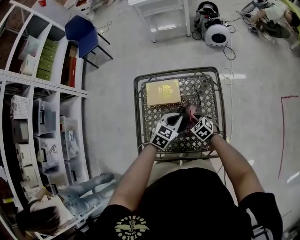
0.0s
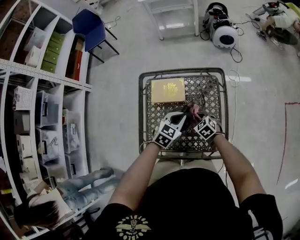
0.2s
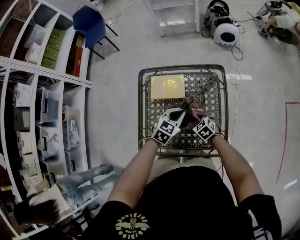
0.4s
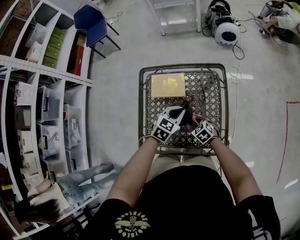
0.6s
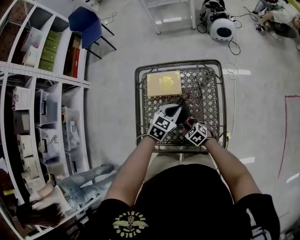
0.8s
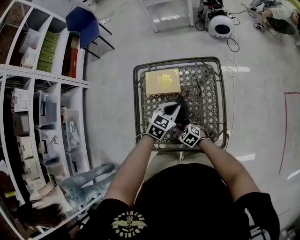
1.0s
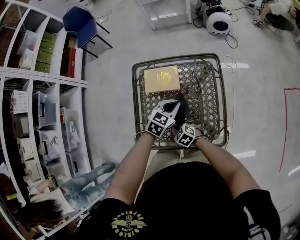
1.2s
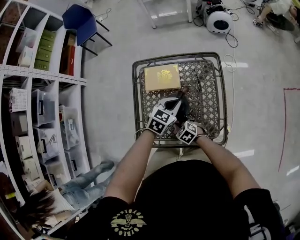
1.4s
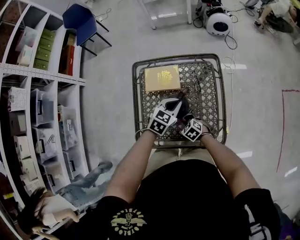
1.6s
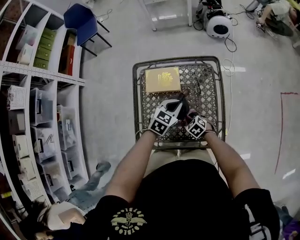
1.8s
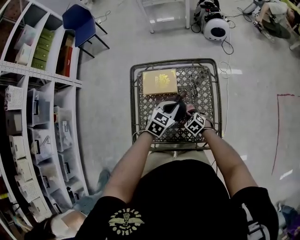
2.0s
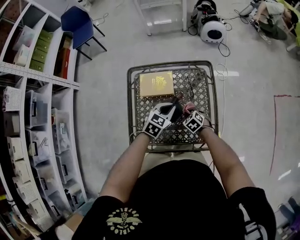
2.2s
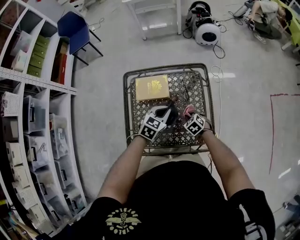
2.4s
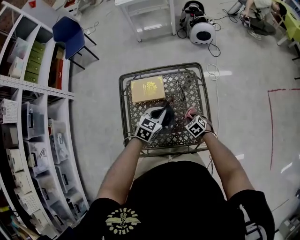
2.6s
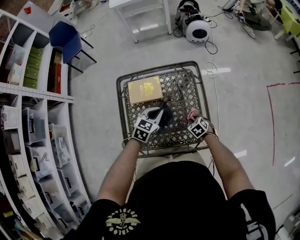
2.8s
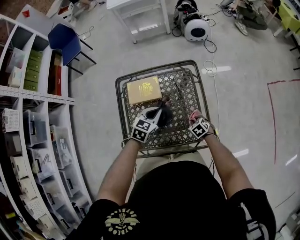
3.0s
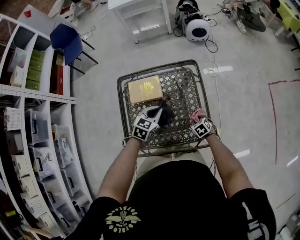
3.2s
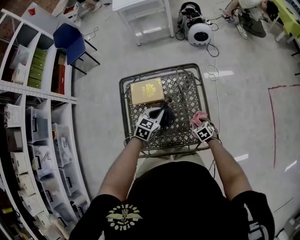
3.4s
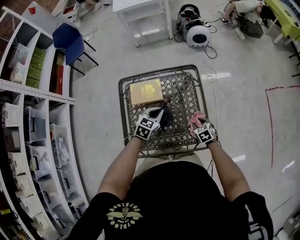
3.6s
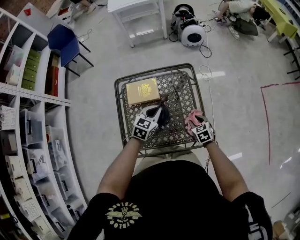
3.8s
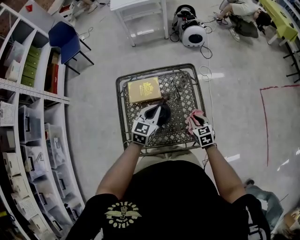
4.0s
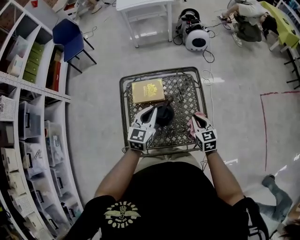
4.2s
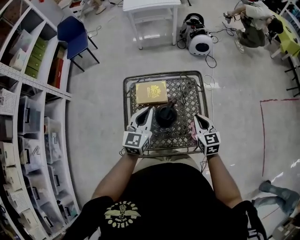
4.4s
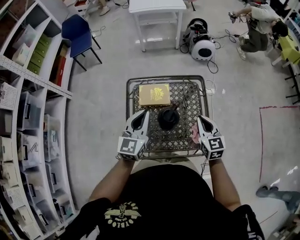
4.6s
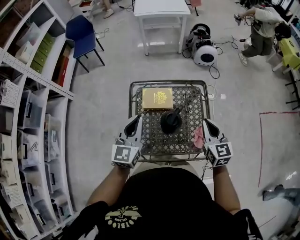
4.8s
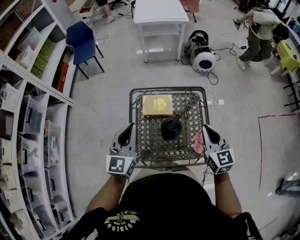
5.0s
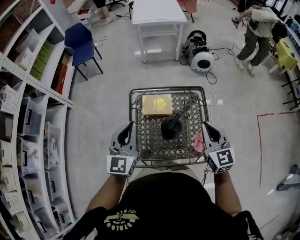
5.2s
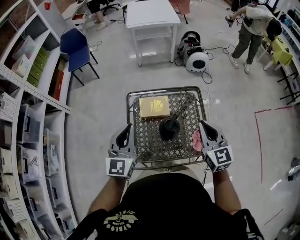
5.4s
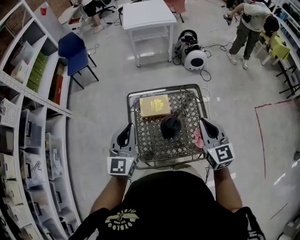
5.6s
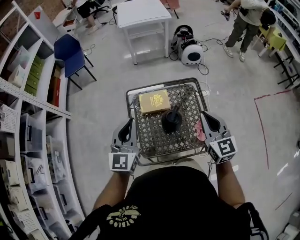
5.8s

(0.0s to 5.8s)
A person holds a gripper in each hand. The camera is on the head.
0.0s - 1.4s: The right gripper goes about 15 cm to the left and backward.
1.4s - 2.8s: The right gripper heads to the right, covering about 20 cm, and changes its angle by some 20 degrees.
2.8s - 4.4s: The right gripper heads upward, covering some 25 cm, tilts its fingers about 40 degrees upward, and opens and closes again. The left gripper goes about 15 cm upward and to the left, and rotates some 30 degrees.
4.4s - 5.8s: The left gripper heads upward and to the left, covering about 15 cm; the right gripper travels upward by about 20 cm.

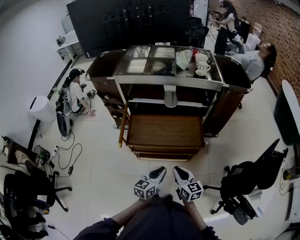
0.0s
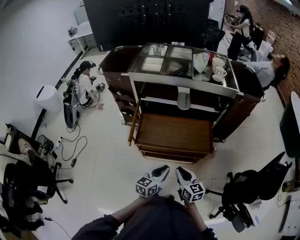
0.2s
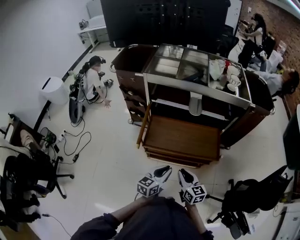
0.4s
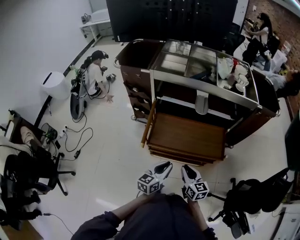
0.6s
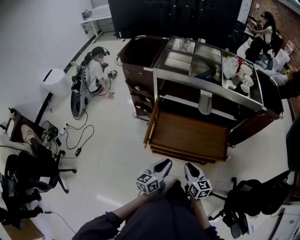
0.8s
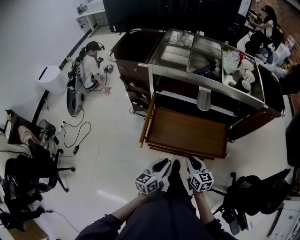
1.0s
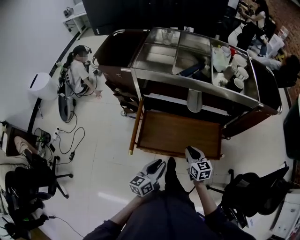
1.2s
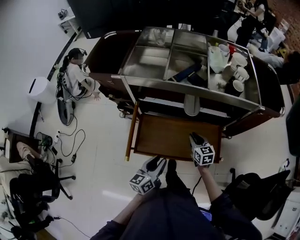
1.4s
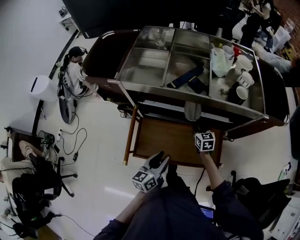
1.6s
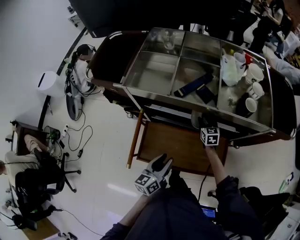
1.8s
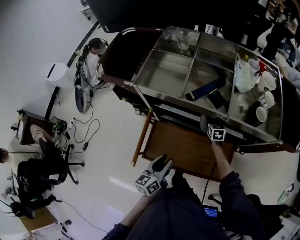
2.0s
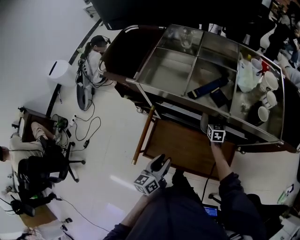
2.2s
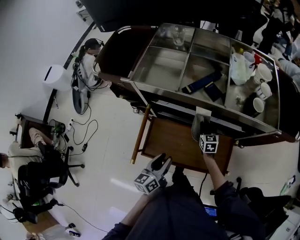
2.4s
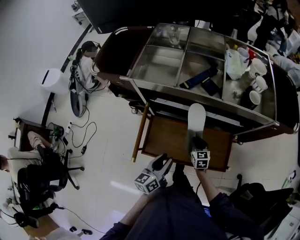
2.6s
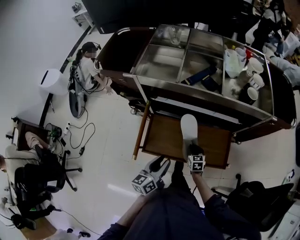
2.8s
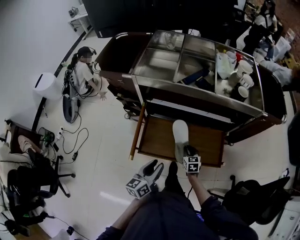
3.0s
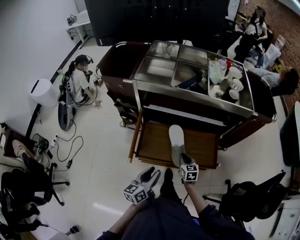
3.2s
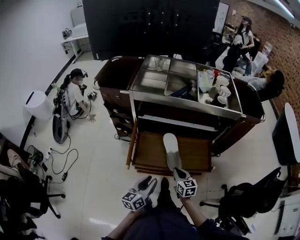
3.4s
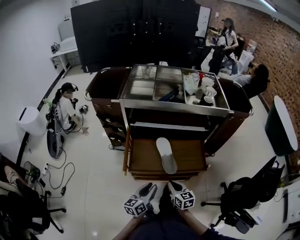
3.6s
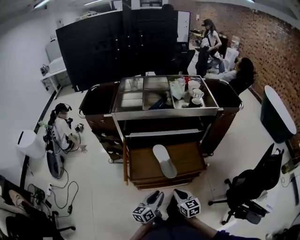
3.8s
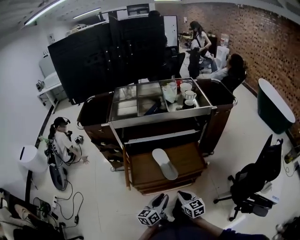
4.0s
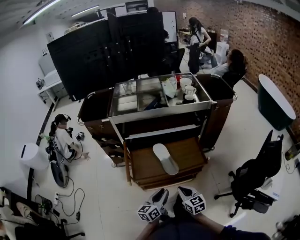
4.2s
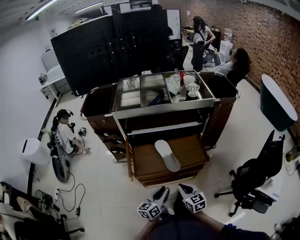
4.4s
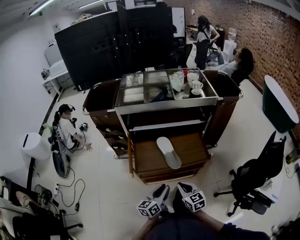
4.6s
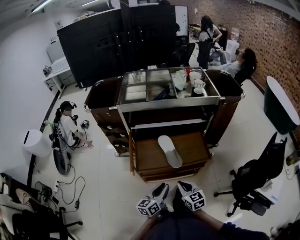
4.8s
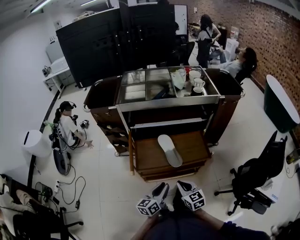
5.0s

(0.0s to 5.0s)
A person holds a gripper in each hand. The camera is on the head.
0.0s - 1.6s: The right gripper shifts about 50 cm forward, and changes its angle by approximately 20 degrees. Meanwhile the left gripper is displaced forward by some 30 cm, and opens up.
1.6s - 3.4s: The right gripper goes some 30 cm backward, and closes up. The left gripper shifts roughly 15 cm backward.
3.4s - 5.0s: The right gripper shifts about 15 cm backward and upward. Meanwhile the left gripper shifts some 5 cm backward.

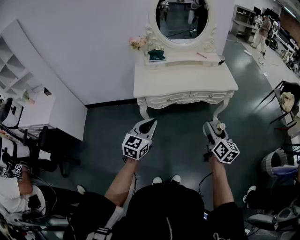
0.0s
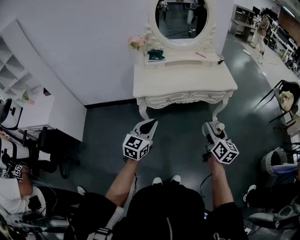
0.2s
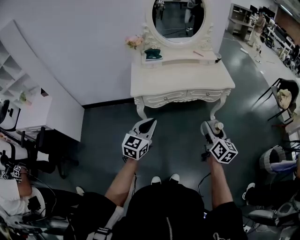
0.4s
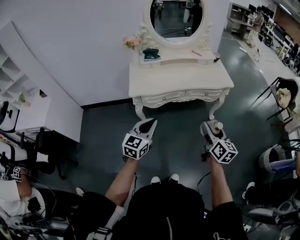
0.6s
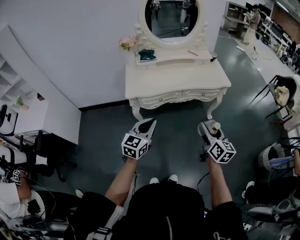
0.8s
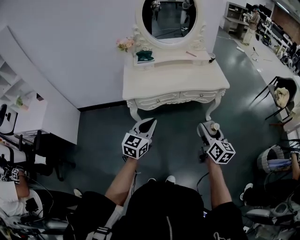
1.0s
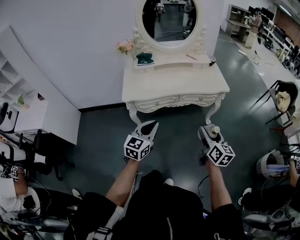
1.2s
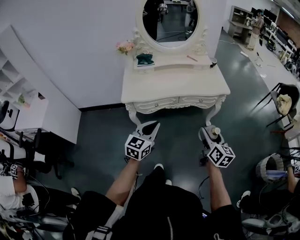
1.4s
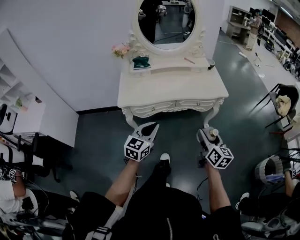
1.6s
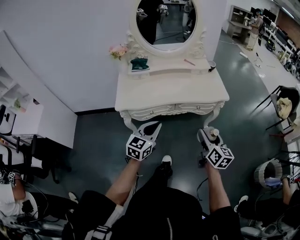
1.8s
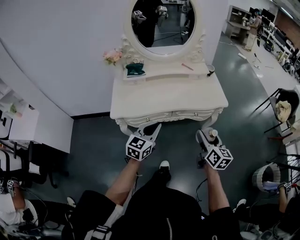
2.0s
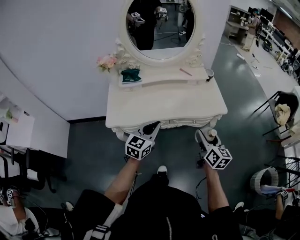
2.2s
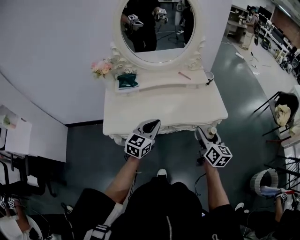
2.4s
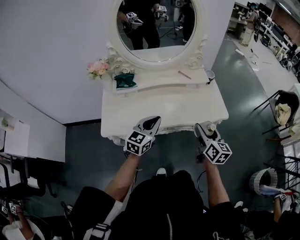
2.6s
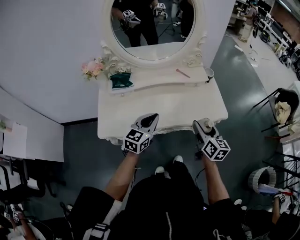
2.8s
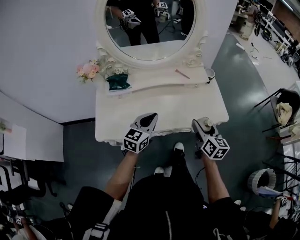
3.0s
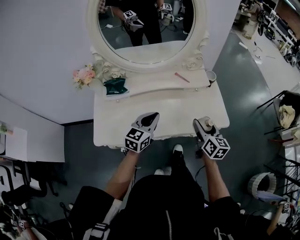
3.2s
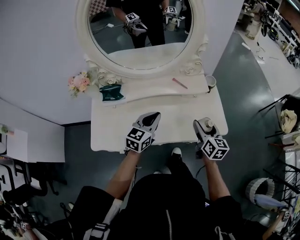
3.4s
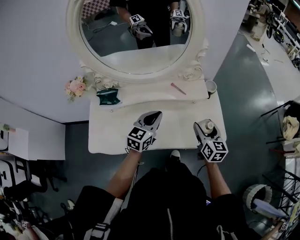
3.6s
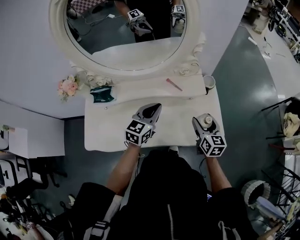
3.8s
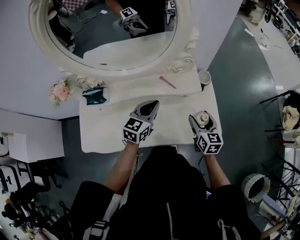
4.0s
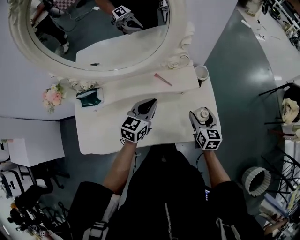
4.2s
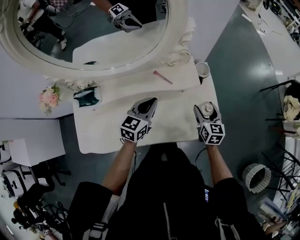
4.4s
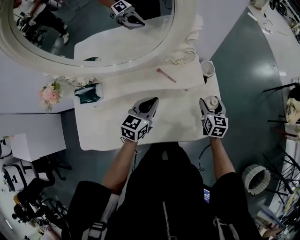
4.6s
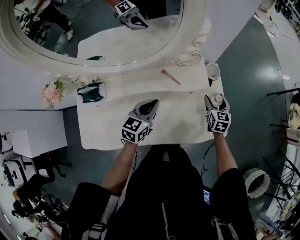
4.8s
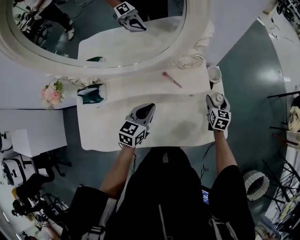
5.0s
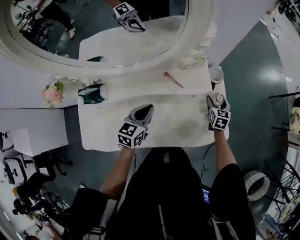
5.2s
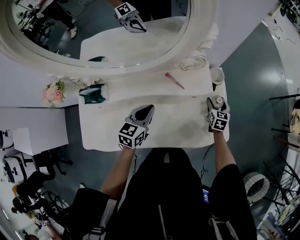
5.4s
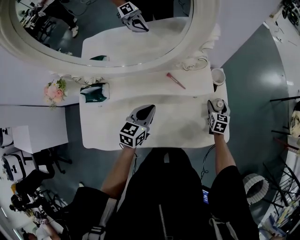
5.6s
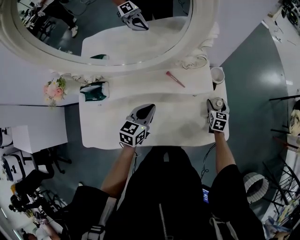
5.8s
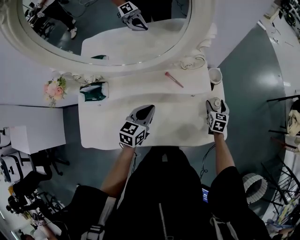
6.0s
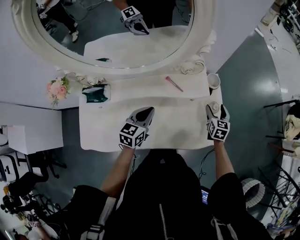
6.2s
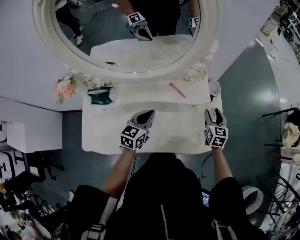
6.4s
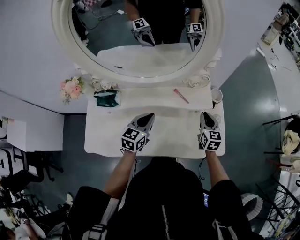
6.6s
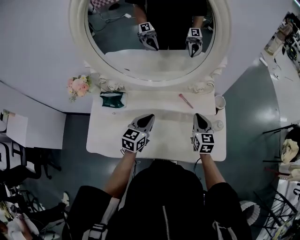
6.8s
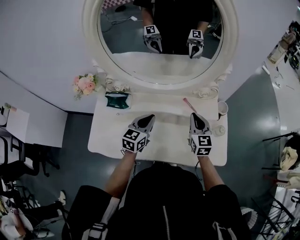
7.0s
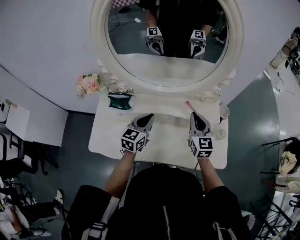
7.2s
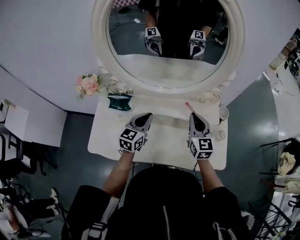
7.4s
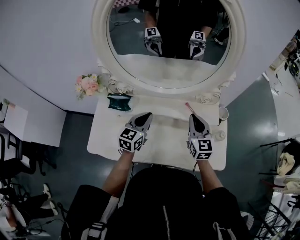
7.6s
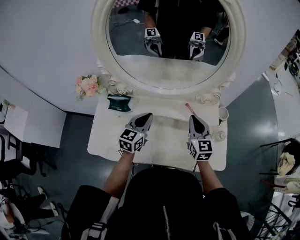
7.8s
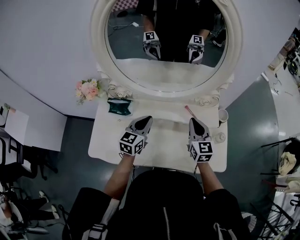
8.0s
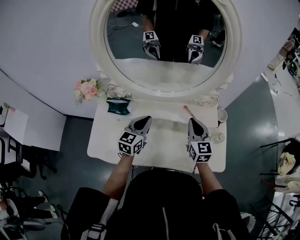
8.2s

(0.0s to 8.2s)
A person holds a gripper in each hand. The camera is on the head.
0.0s - 1.6s: The left gripper heads to the right and forward, covering roughly 15 cm. Meanwhile the right gripper moves forward and to the right, about 10 cm.
1.6s - 3.2s: The two grippers travel together, forward, some 40 cm.
3.2s - 5.0s: The left gripper moves forward and downward, approximately 20 cm. Meanwhile the right gripper travels forward and downward by some 35 cm, and turns by about 30 degrees.
5.0s - 6.6s: The right gripper travels upward, to the left and backward by about 15 cm, and closes up. Meanwhile the left gripper changes place by approximately 5 cm.
6.6s - 8.2s: The left gripper shifts roughly 10 cm to the left; the right gripper goes about 20 cm to the left and upward.

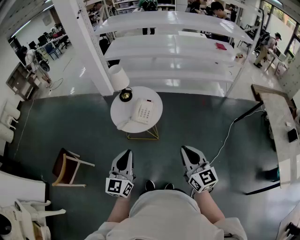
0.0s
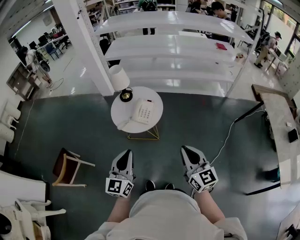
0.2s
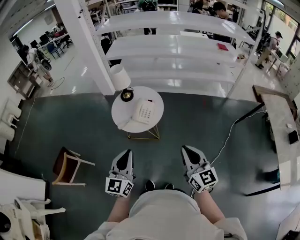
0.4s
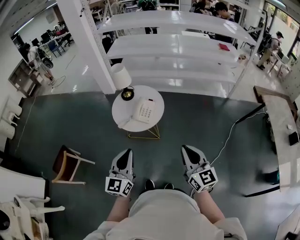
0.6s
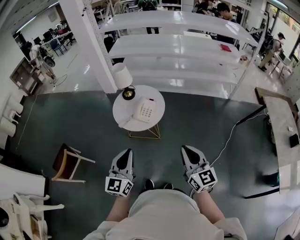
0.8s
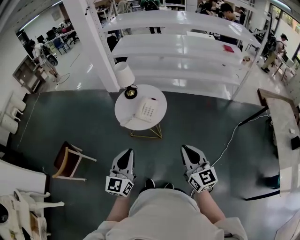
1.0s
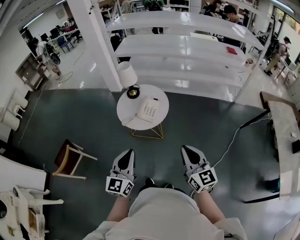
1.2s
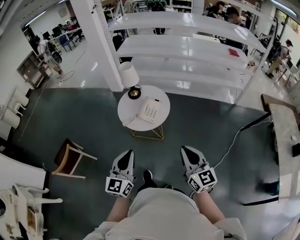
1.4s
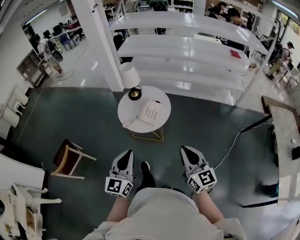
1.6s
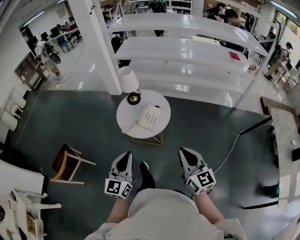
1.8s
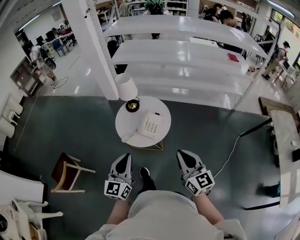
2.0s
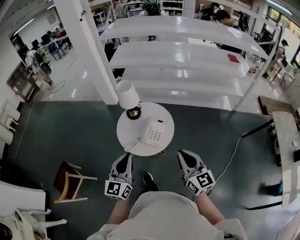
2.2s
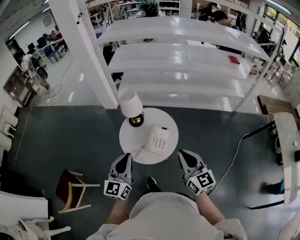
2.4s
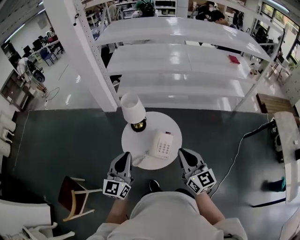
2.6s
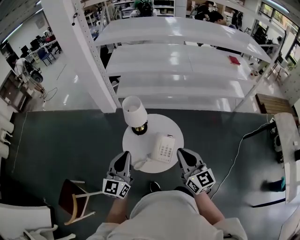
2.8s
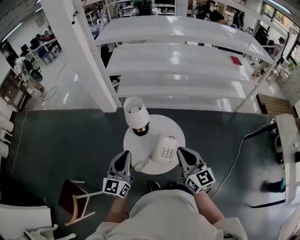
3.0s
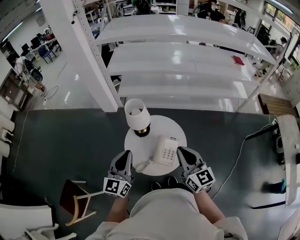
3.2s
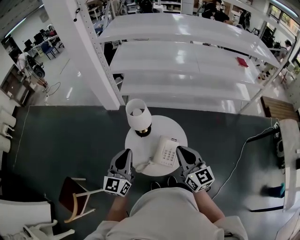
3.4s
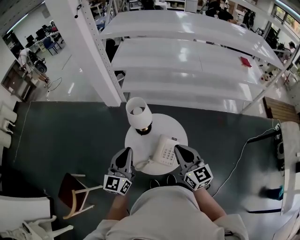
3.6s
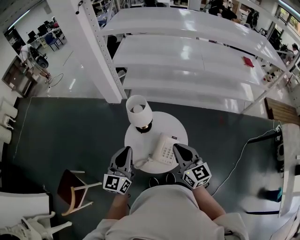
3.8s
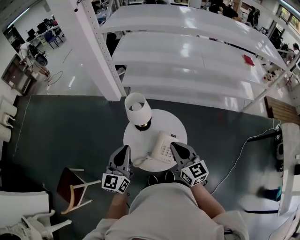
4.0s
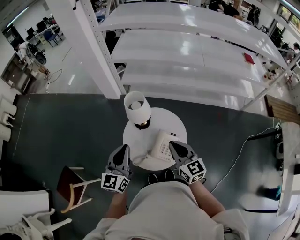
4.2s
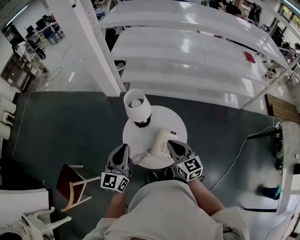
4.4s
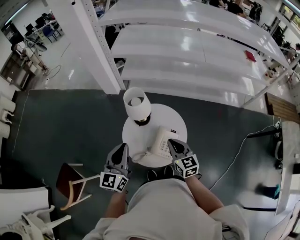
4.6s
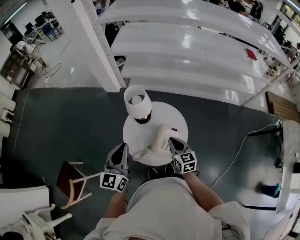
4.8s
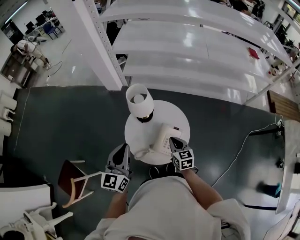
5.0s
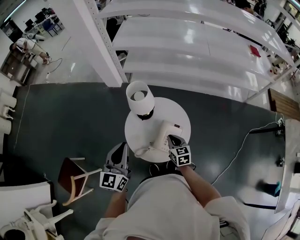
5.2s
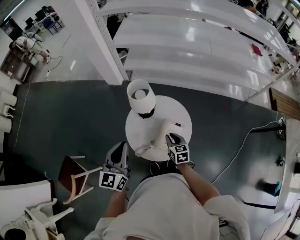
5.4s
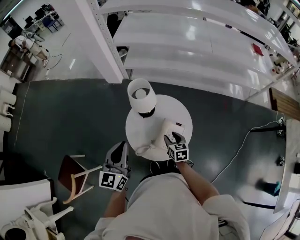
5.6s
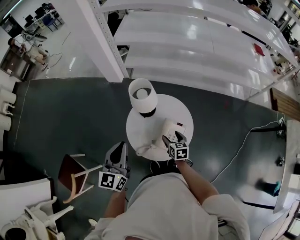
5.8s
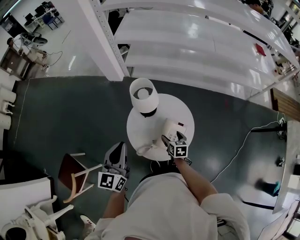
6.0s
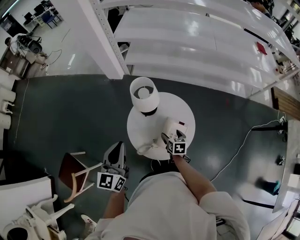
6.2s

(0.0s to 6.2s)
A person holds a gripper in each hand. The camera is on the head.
0.0s - 1.6s: The grippers move only a little.
1.6s - 3.2s: The right gripper shifts roughly 35 cm forward and to the left. The left gripper travels forward by about 35 cm.
3.2s - 4.6s: The right gripper goes some 15 cm downward and forward.
4.6s - 6.2s: The left gripper shifts by roughly 5 cm, while the right gripper travels downward by approximately 20 cm, rotates roughly 30 degrees, and opens.
